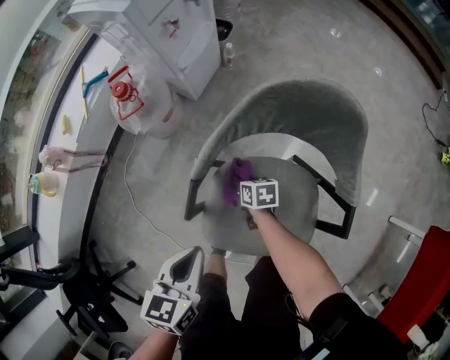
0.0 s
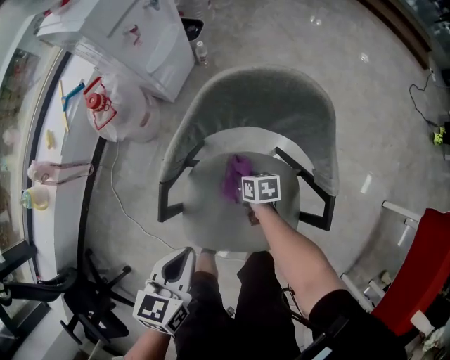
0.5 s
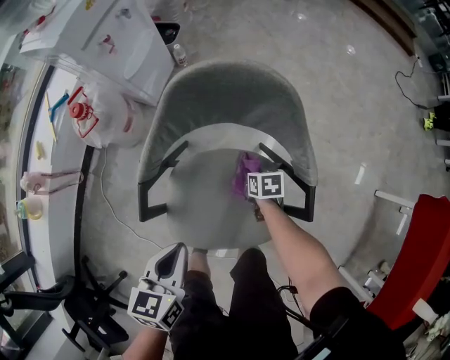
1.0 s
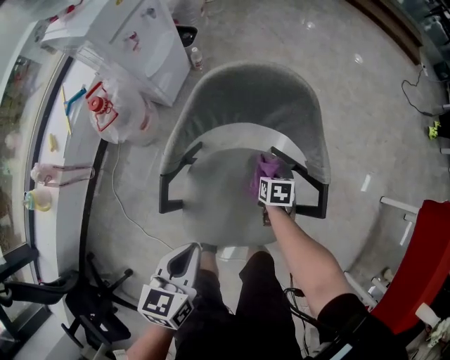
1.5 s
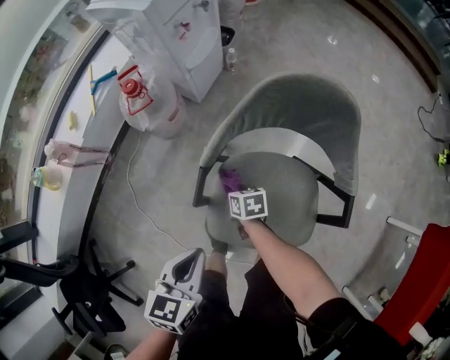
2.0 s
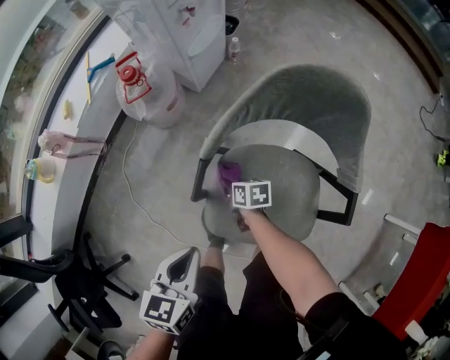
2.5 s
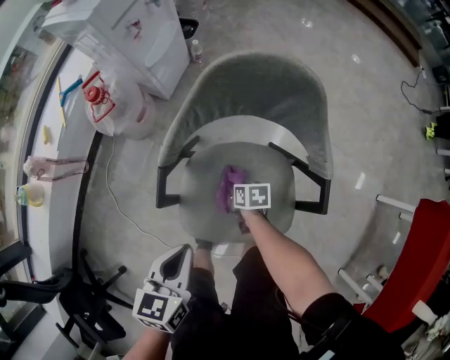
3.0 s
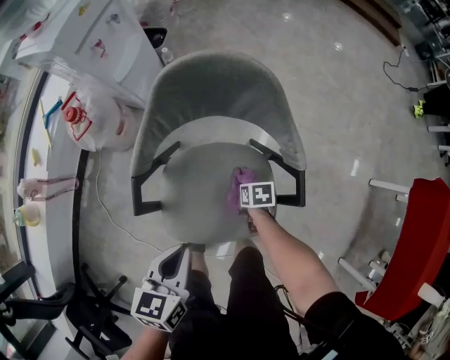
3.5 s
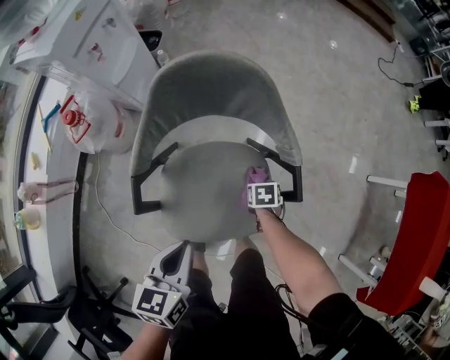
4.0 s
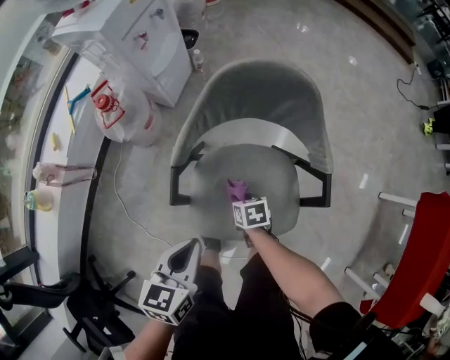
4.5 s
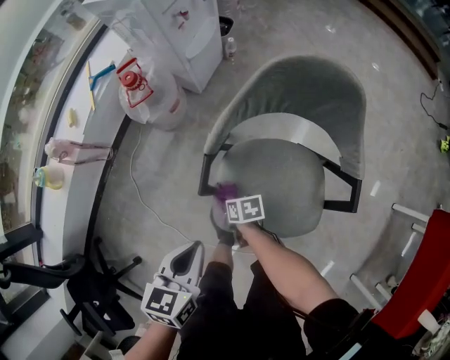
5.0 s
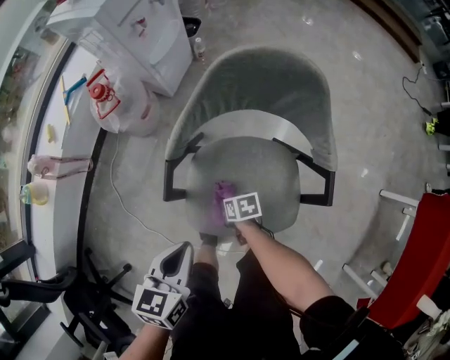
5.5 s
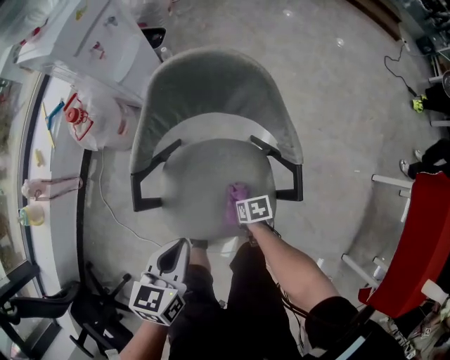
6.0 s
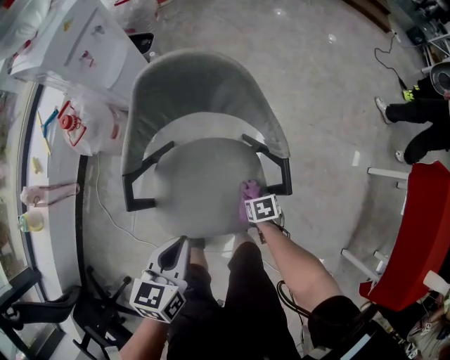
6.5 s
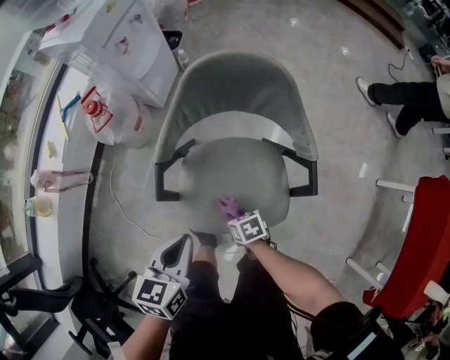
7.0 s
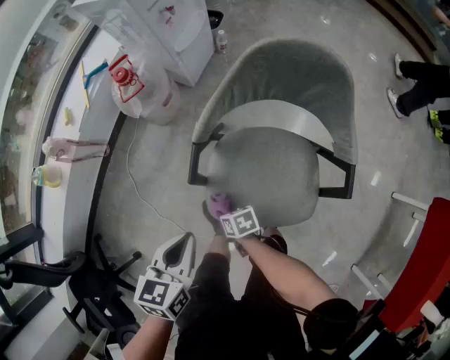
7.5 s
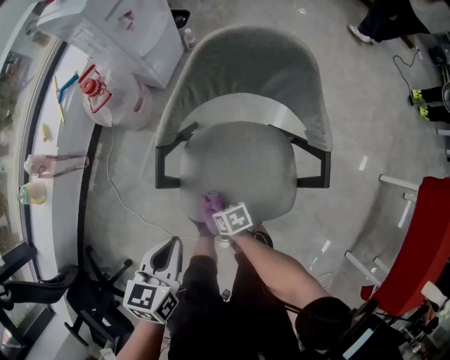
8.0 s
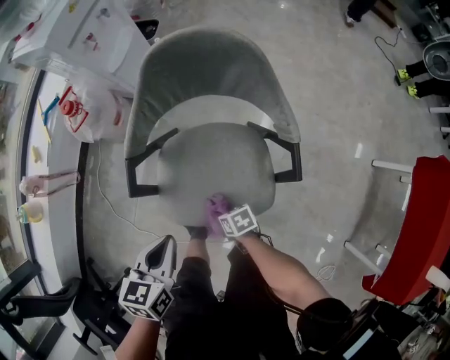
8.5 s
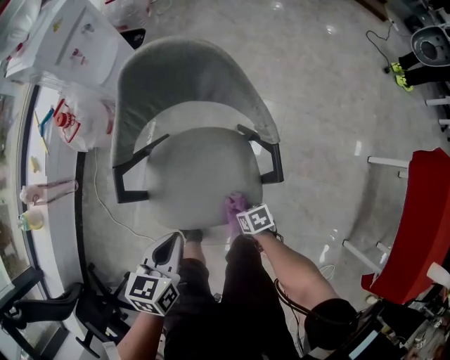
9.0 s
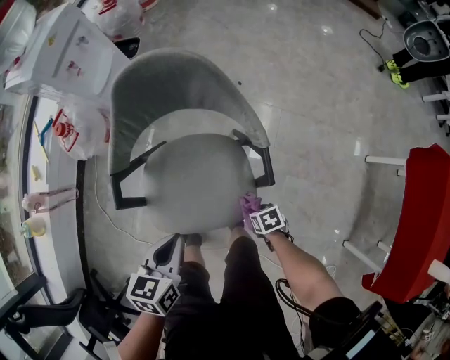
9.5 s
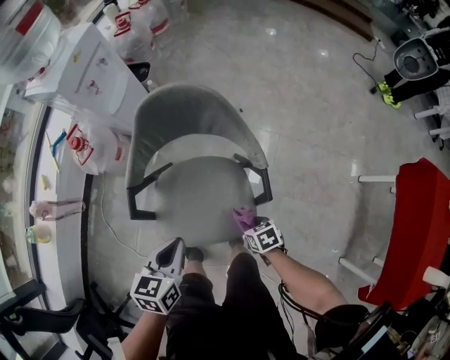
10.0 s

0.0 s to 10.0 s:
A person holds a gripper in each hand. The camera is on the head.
0.0 to 2.0 s: The left gripper moves some 10 cm to the right and comes back, while the right gripper heads backward, covering about 5 cm, and goes to the right and returns, about 20 cm each way.
2.0 to 4.0 s: The left gripper shifts by about 10 cm; the right gripper moves roughly 30 cm, and changes its angle by some 30 degrees.
6.0 to 8.0 s: The left gripper moves approximately 10 cm. The right gripper changes place by roughly 20 cm.
8.0 to 10.0 s: The left gripper travels to the right by some 15 cm. Meanwhile the right gripper moves to the right, about 25 cm.

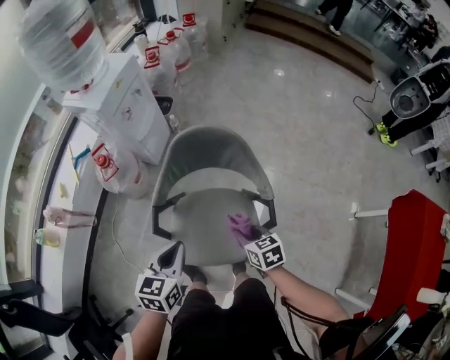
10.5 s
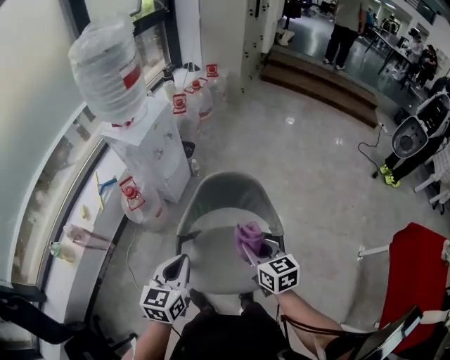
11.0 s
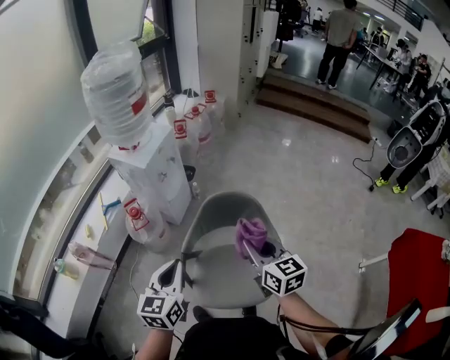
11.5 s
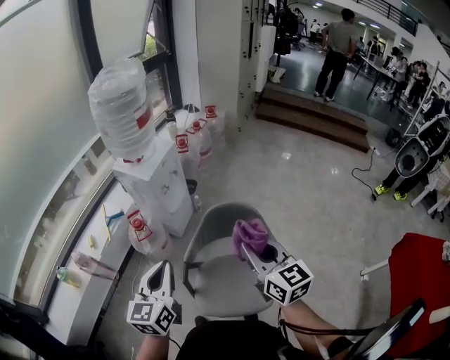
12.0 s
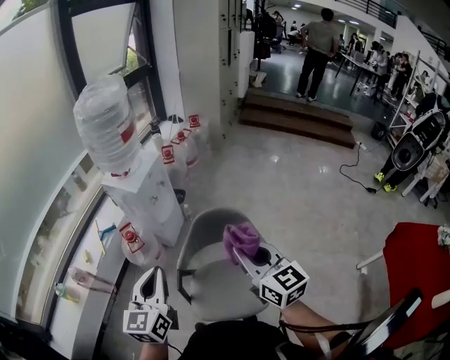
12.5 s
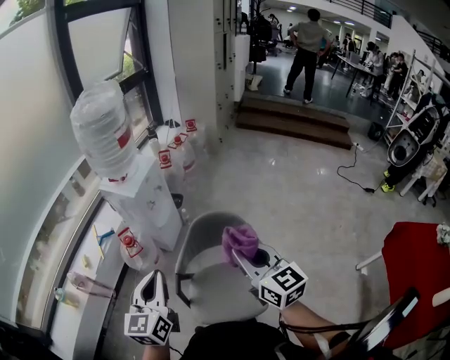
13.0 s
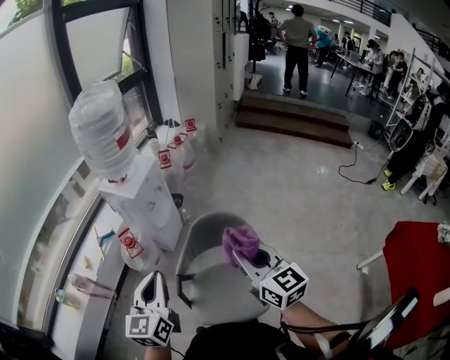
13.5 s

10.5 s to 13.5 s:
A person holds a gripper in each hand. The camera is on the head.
10.5 to 12.0 s: The right gripper goes roughly 35 cm upward, and tilts its fingers about 40 degrees upward, while the left gripper shifts about 25 cm upward and to the left, and swivels some 30 degrees.
12.0 to 13.5 s: The grippers make only small movements.

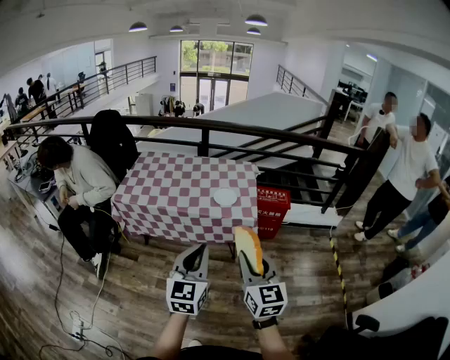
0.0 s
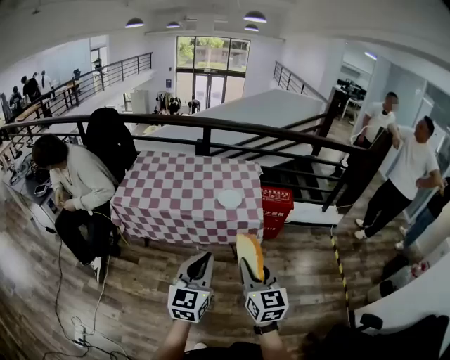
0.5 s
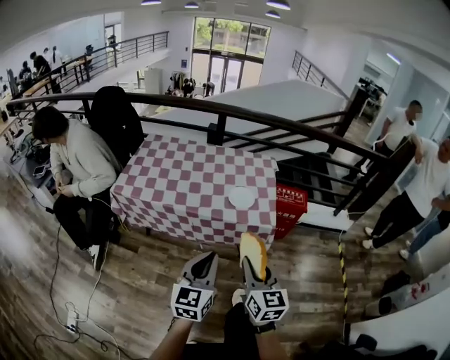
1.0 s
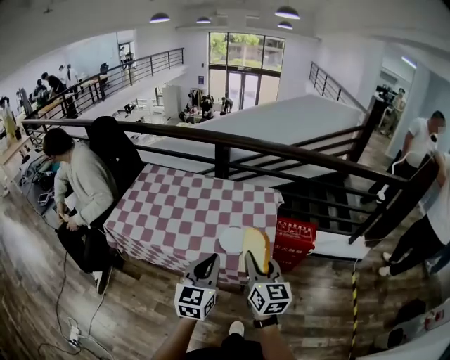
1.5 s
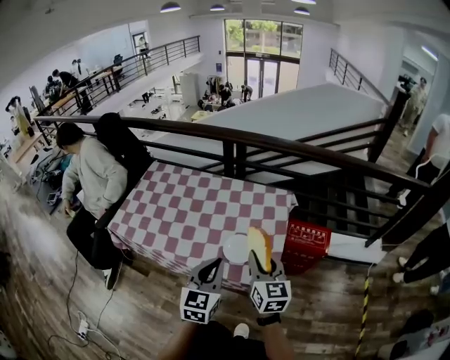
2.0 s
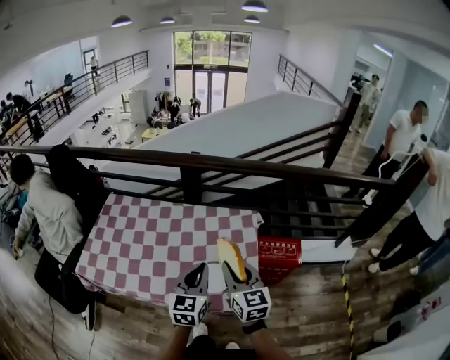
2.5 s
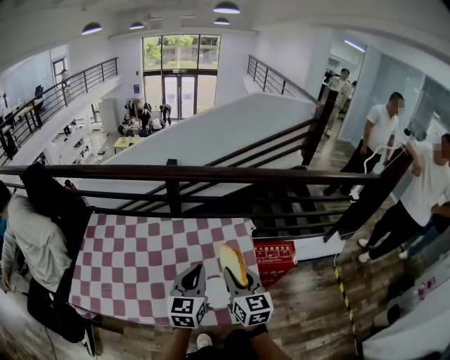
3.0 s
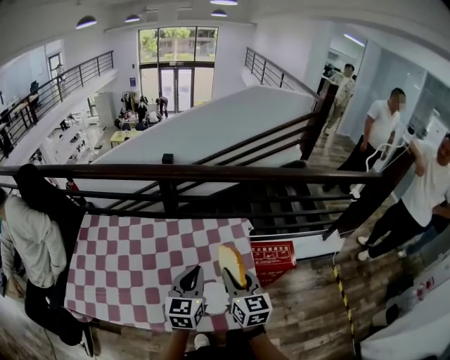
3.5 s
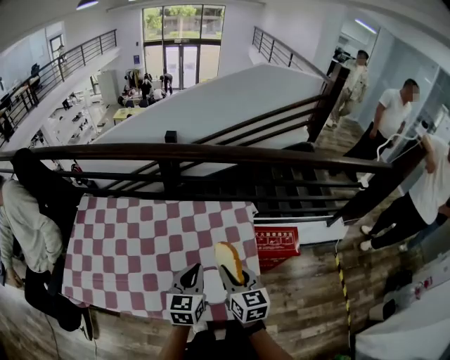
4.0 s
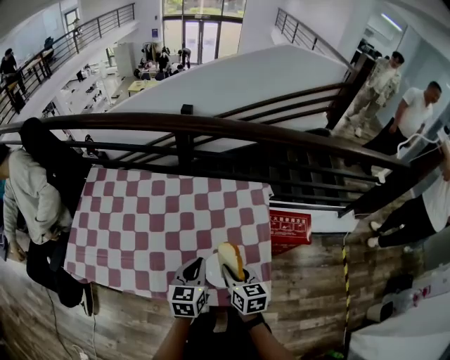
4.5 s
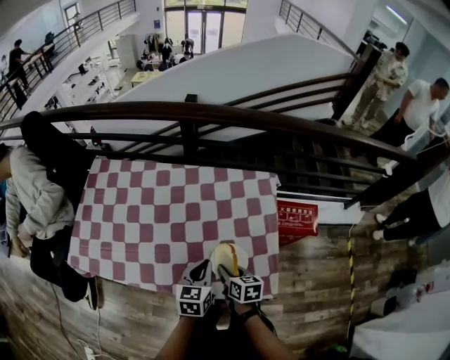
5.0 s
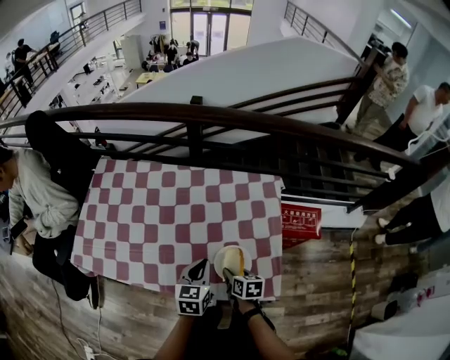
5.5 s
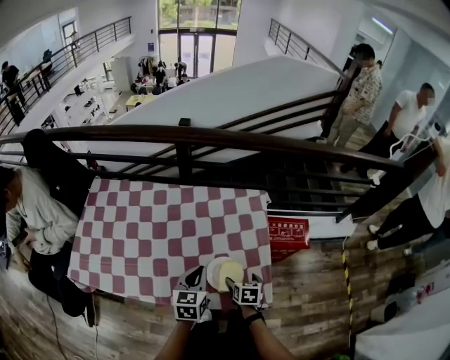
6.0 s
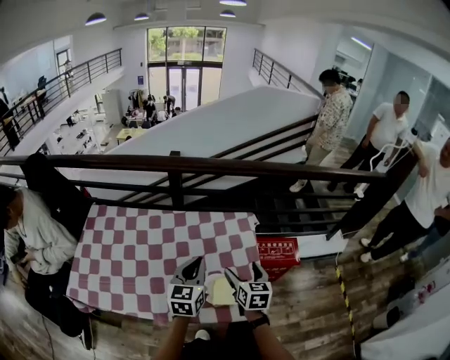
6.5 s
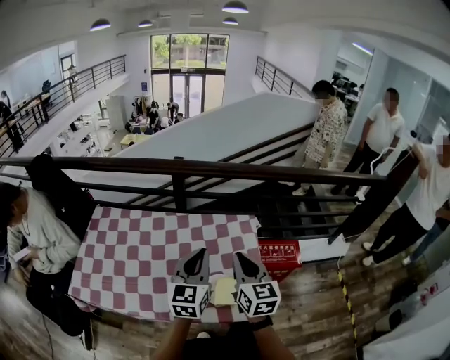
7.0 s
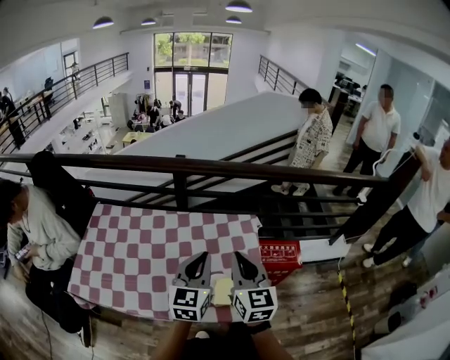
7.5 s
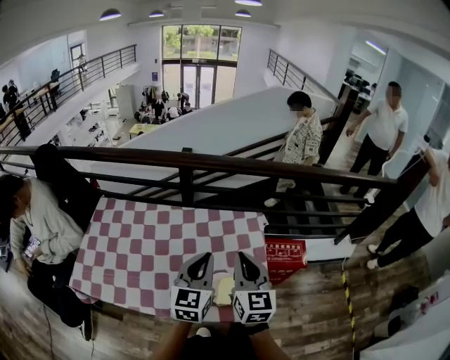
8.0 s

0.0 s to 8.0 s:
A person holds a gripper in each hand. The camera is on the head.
0.0 to 2.0 s: The grippers both shift forward by some 40 cm.
2.0 to 4.0 s: Both grippers travel together forward and downward, approximately 20 cm.
4.0 to 6.0 s: The left gripper heads downward, covering about 10 cm. Meanwhile the right gripper travels downward by some 25 cm, points its fingers approximately 30 degrees further downward, and opens its fingers.
6.0 to 8.0 s: The left gripper moves upward, roughly 20 cm, and swivels some 20 degrees. The right gripper is displaced upward by roughly 35 cm, angles its fingers upward, by some 50 degrees, and closes up.

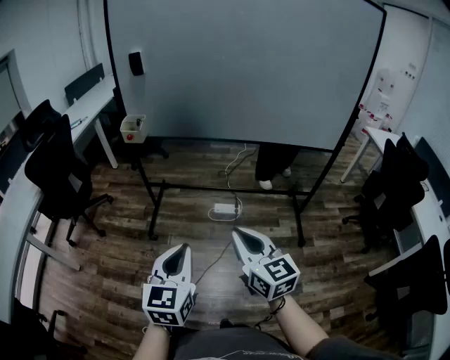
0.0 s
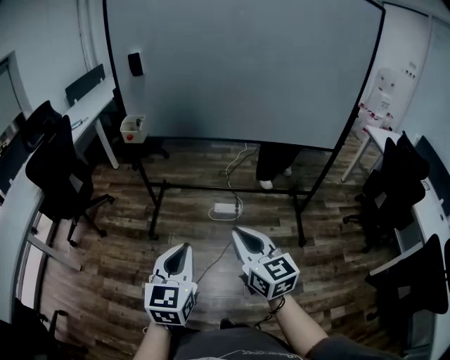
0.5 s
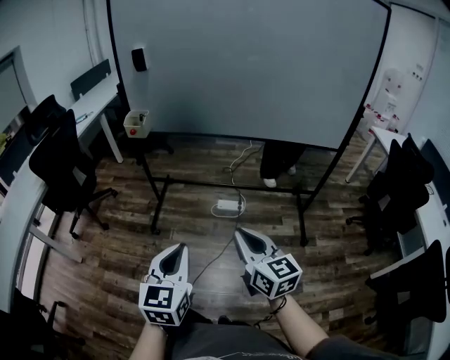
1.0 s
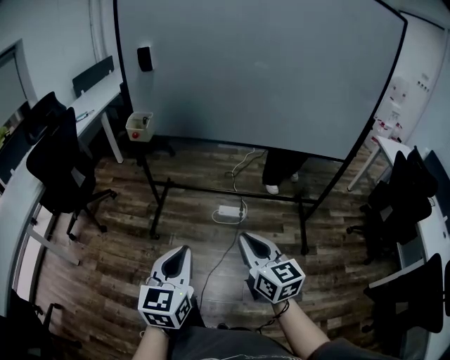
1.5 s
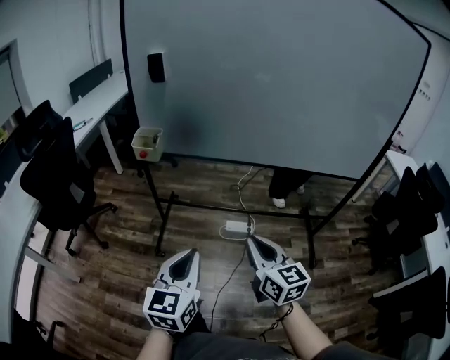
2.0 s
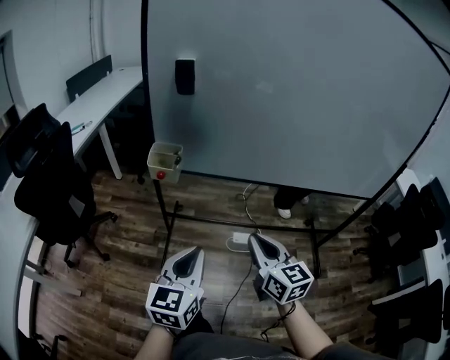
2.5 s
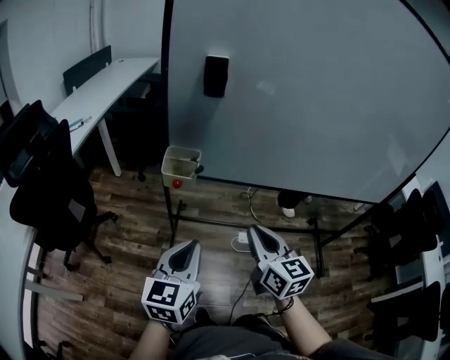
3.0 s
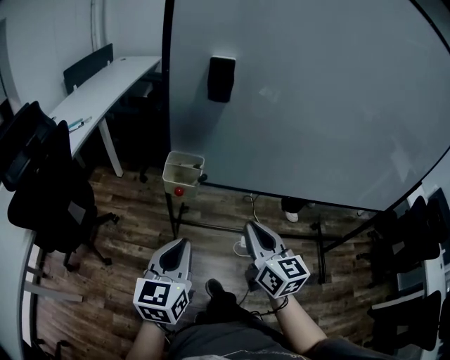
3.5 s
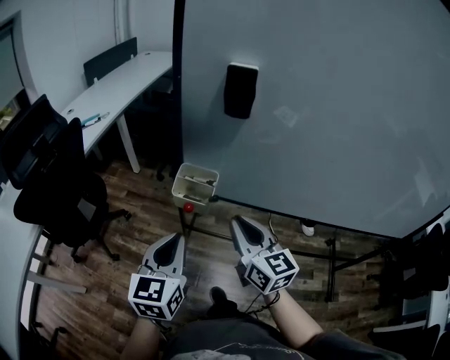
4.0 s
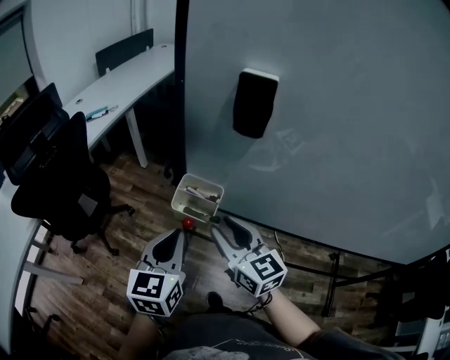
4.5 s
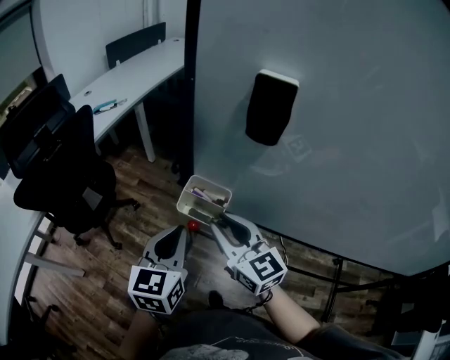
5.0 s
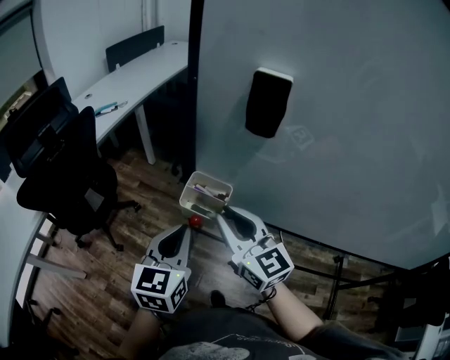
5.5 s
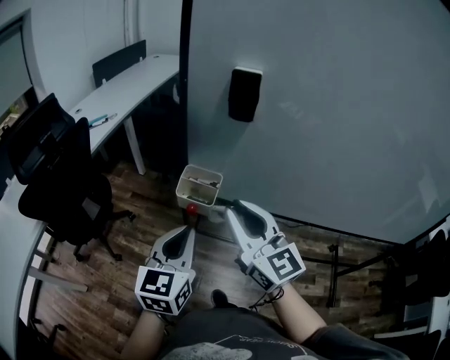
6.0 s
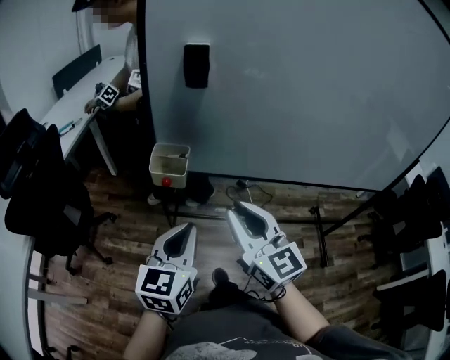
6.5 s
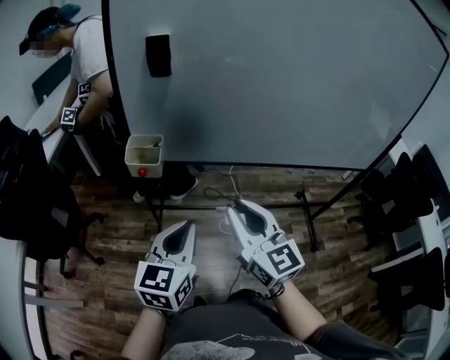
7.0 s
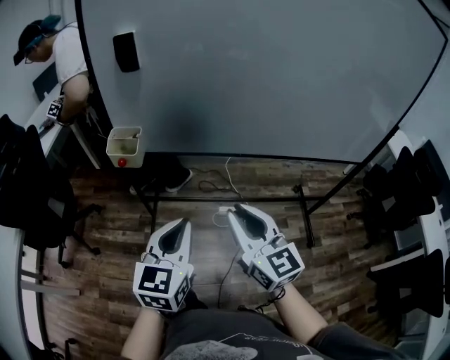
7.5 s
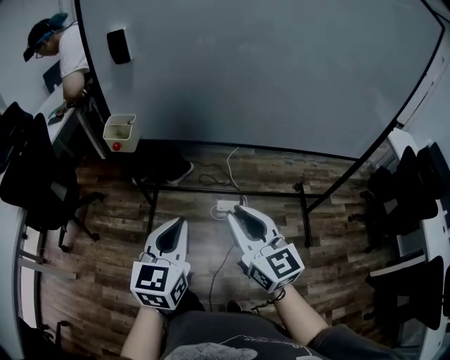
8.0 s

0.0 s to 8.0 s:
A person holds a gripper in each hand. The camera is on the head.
0.0 to 2.0 s: Both grippers travel together forward, some 15 cm.
2.0 to 4.0 s: Both grippers travel together forward and to the left, some 40 cm.
4.0 to 6.0 s: The left gripper moves some 10 cm forward and comes back, while the right gripper travels upward by some 10 cm.
6.0 to 8.0 s: The two grippers go about 35 cm to the right and backward.
